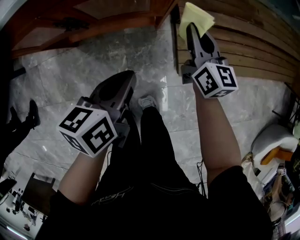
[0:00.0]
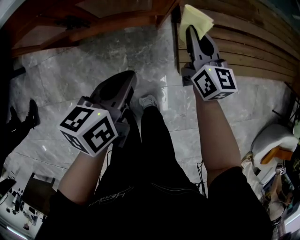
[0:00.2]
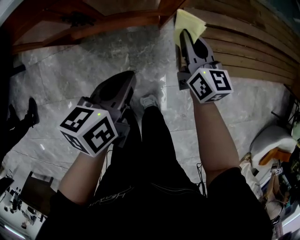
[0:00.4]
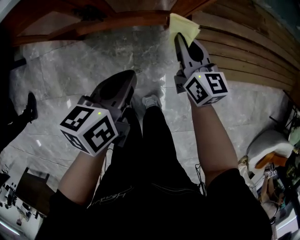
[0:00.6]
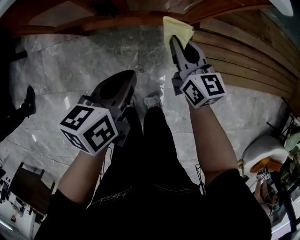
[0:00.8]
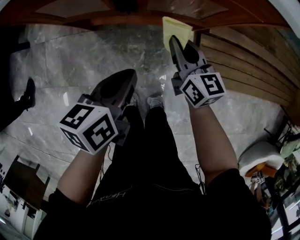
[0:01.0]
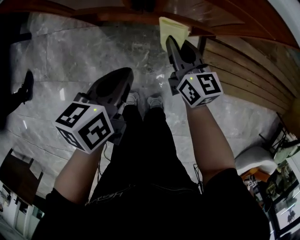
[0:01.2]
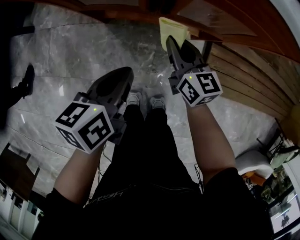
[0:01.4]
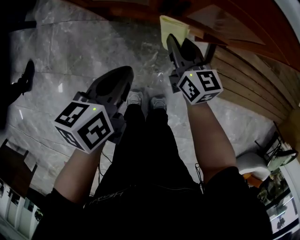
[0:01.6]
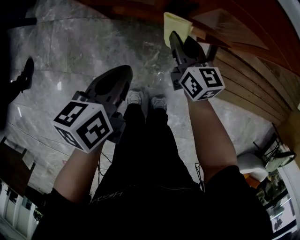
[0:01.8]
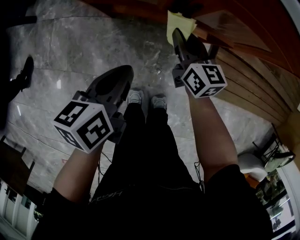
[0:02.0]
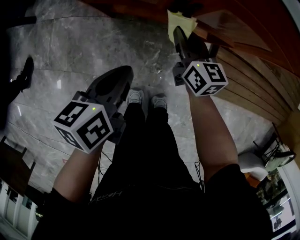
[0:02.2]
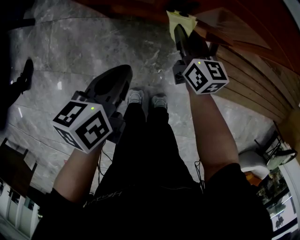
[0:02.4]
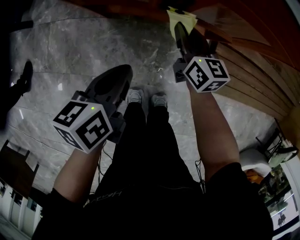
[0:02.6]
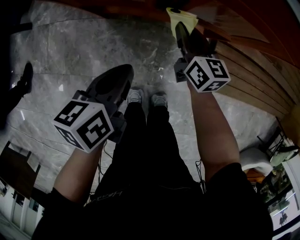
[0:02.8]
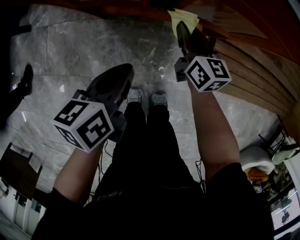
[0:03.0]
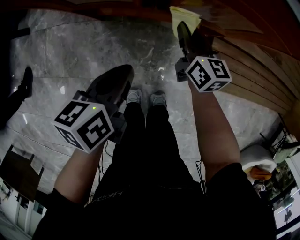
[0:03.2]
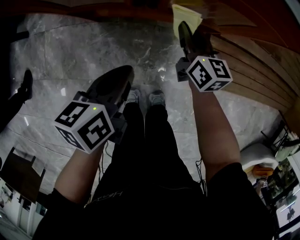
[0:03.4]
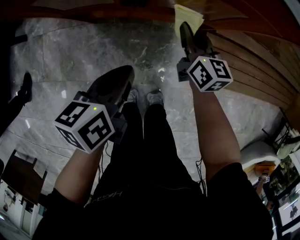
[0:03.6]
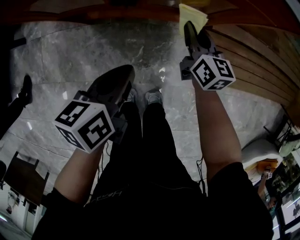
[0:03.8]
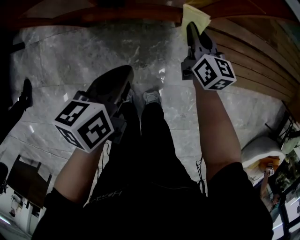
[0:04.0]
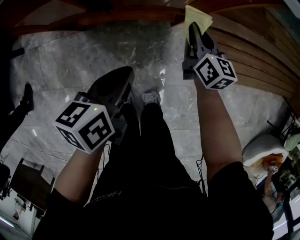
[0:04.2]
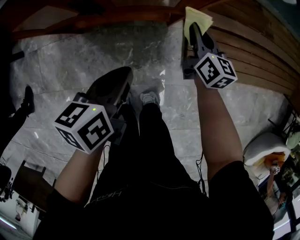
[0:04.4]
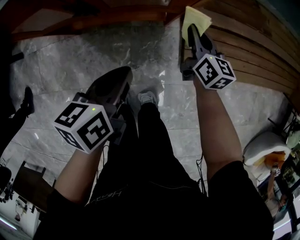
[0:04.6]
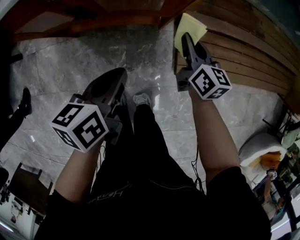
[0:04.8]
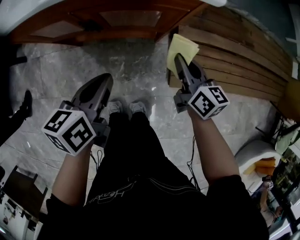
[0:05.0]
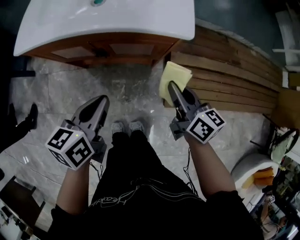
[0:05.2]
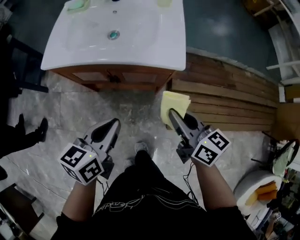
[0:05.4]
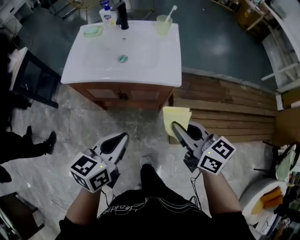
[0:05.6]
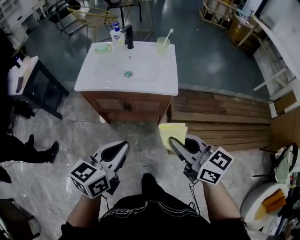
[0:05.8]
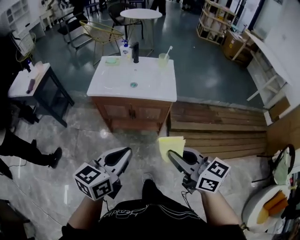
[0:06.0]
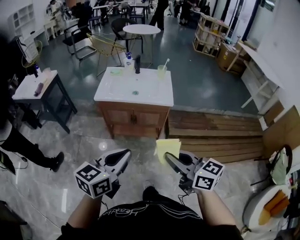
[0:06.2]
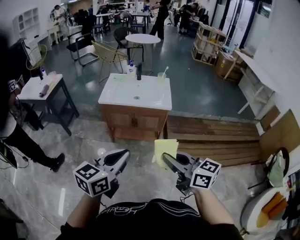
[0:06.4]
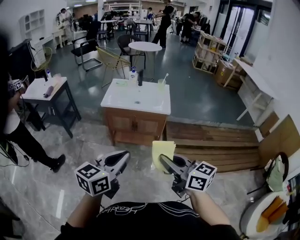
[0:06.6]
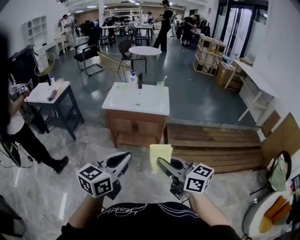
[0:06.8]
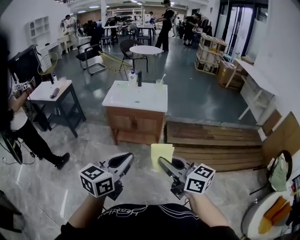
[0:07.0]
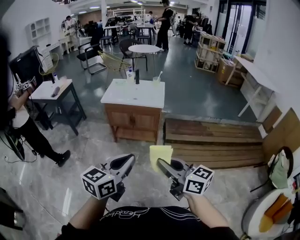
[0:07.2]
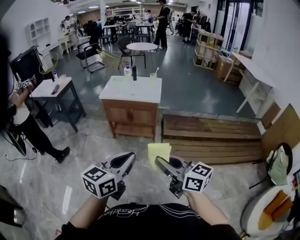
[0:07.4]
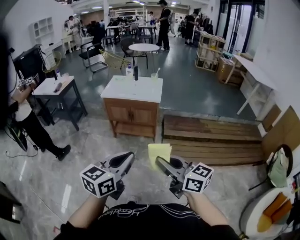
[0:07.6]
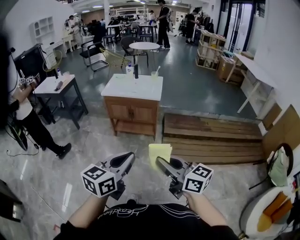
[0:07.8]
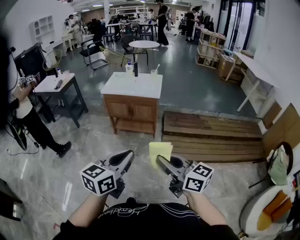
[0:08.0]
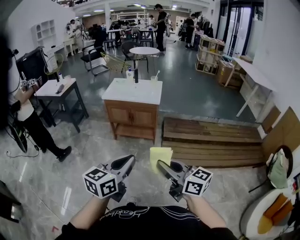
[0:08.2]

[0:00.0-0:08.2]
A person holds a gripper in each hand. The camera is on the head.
0:00.0 to 0:01.6: The grippers both shift to the left by some 25 cm. The right gripper turns by some 30 degrees.
0:01.6 to 0:03.2: The right gripper is displaced to the right by roughly 5 cm.
0:03.2 to 0:05.0: The two grippers go roughly 20 cm to the right and upward.
0:05.0 to 0:06.6: The two grippers go about 60 cm upward and backward. The left gripper swivels approximately 40 degrees; the right gripper rotates some 30 degrees.
0:06.6 to 0:08.2: Both grippers move backward and to the right, about 25 cm.

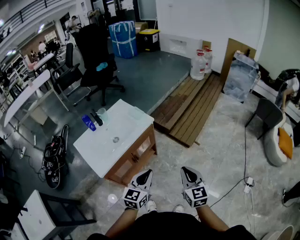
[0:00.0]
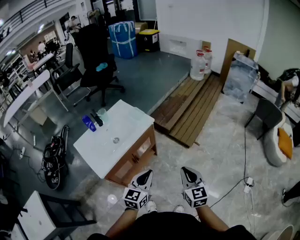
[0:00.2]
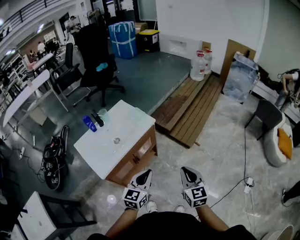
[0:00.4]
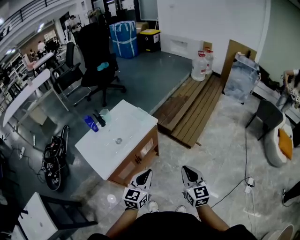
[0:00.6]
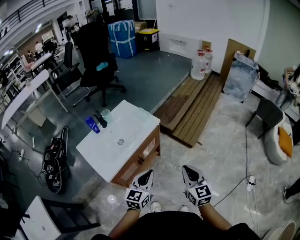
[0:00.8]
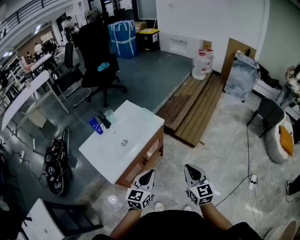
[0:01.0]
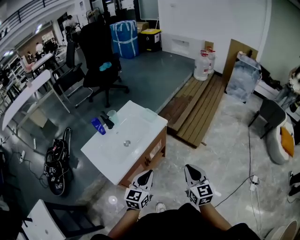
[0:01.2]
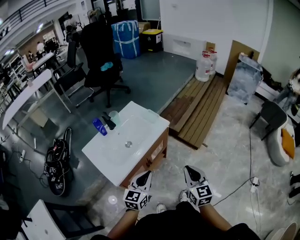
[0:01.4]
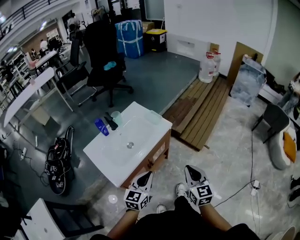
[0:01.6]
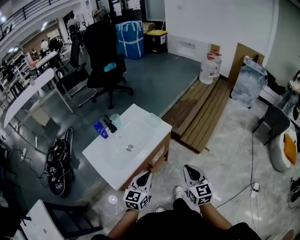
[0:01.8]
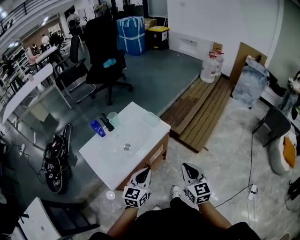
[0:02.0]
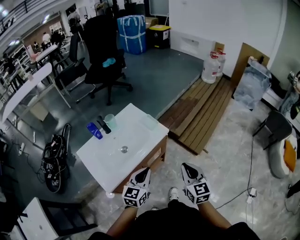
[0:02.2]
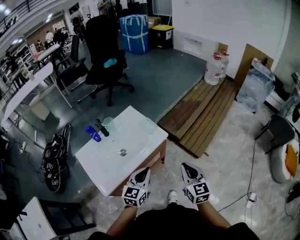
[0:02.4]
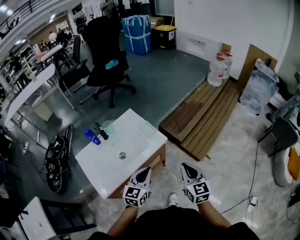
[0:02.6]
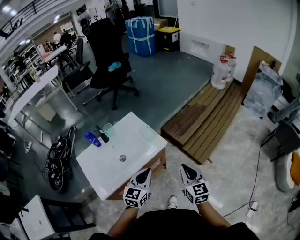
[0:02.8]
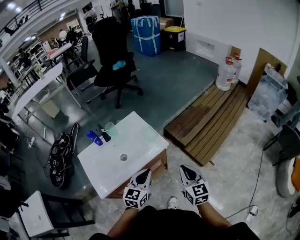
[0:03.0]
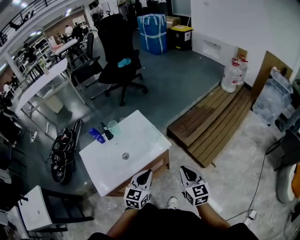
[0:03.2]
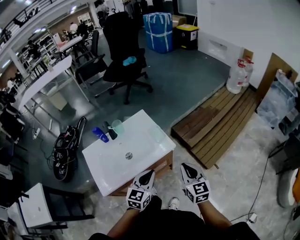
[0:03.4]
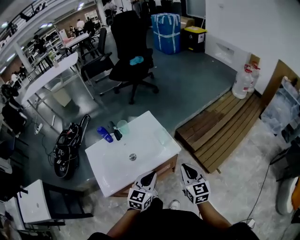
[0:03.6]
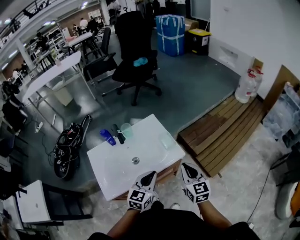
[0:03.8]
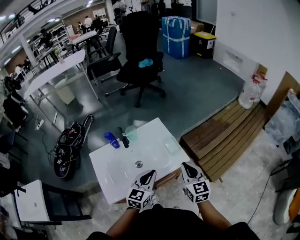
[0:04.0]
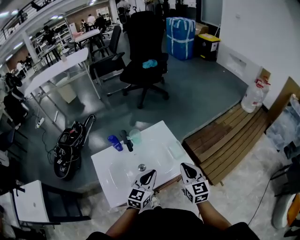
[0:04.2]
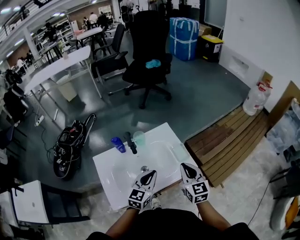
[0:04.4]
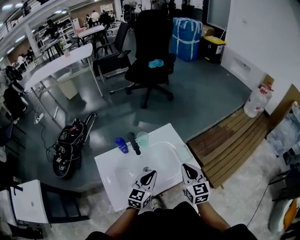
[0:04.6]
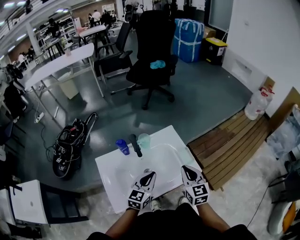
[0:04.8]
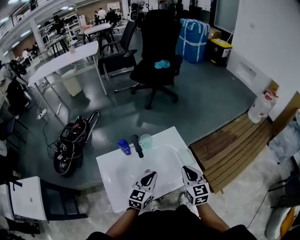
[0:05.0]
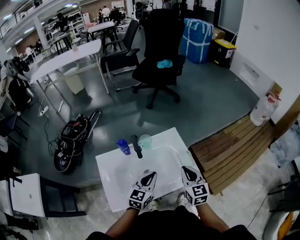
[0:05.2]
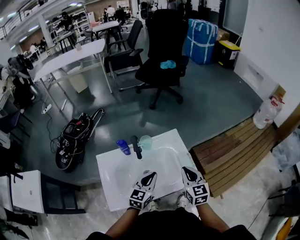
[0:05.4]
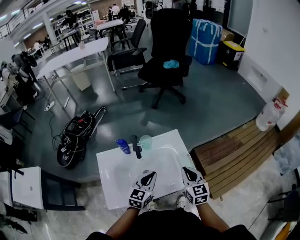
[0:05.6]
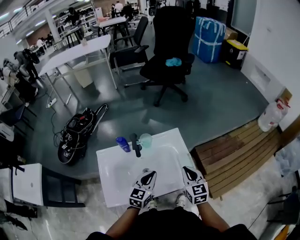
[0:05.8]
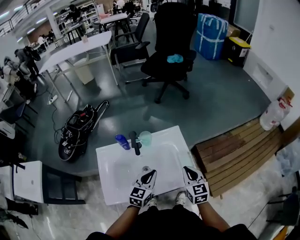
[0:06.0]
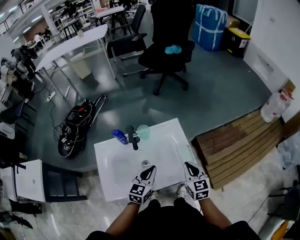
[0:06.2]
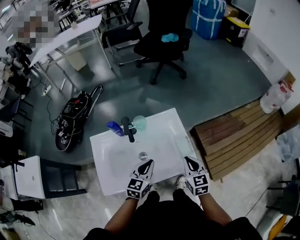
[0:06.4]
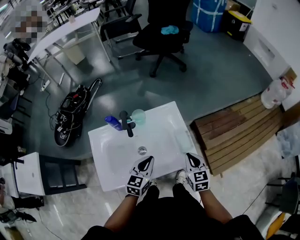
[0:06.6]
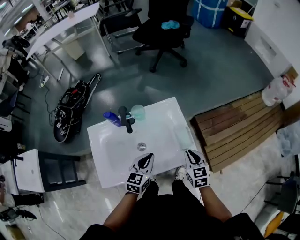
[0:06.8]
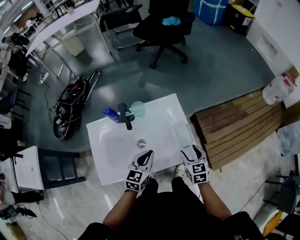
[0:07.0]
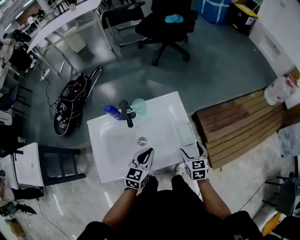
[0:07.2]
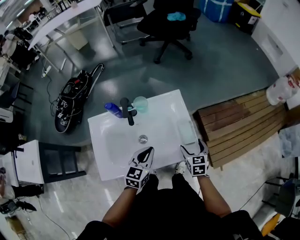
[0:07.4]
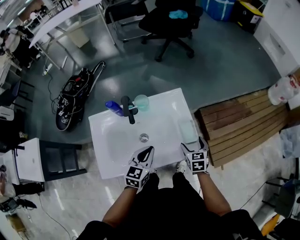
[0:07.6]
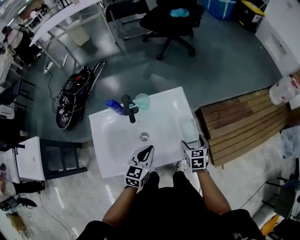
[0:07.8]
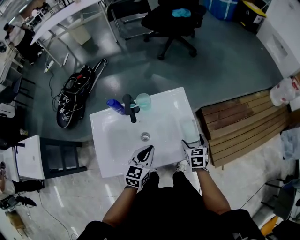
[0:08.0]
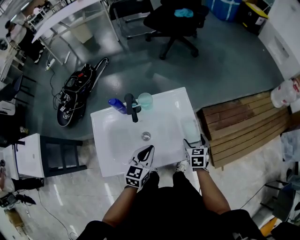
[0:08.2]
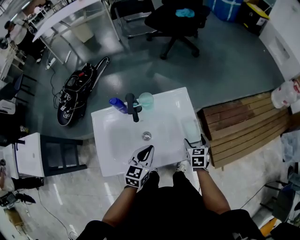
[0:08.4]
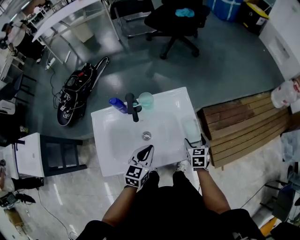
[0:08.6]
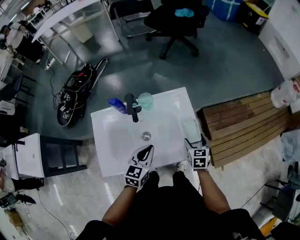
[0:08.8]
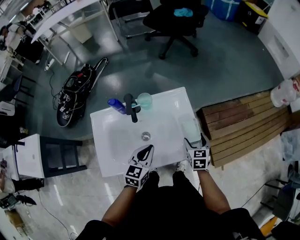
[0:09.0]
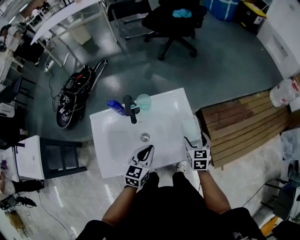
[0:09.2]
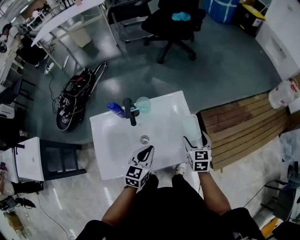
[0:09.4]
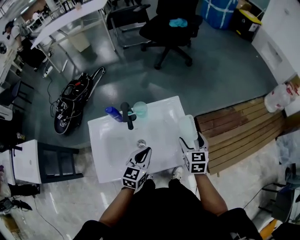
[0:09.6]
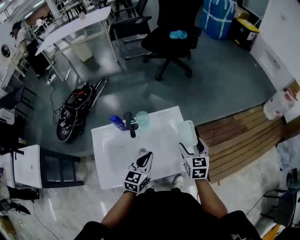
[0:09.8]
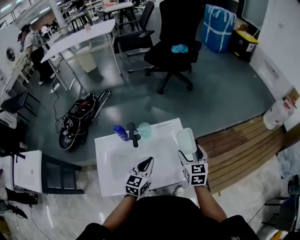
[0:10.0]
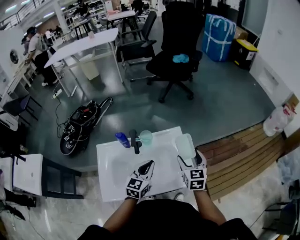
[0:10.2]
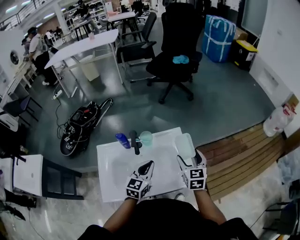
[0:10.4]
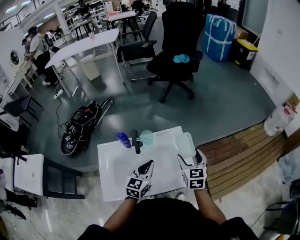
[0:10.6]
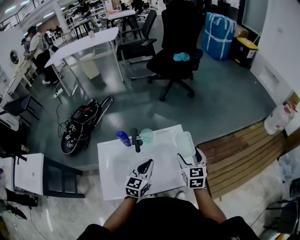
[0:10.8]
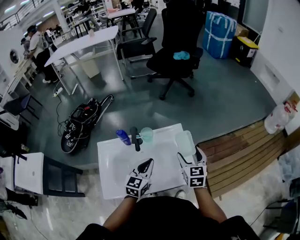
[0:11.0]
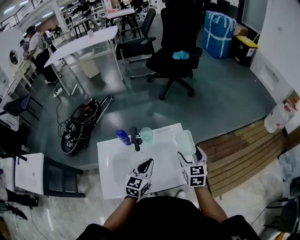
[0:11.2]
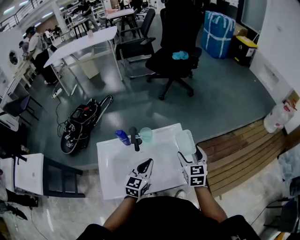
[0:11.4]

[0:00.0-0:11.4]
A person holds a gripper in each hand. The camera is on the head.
0:00.0 to 0:01.4: The grippers both shift to the left by about 10 cm.
0:01.4 to 0:02.8: The right gripper travels forward by approximately 20 cm, while the left gripper moves forward and to the right, some 20 cm.
0:02.8 to 0:04.2: The right gripper heads forward and to the left, covering about 20 cm, while the left gripper is displaced to the left and forward by about 15 cm.
0:04.2 to 0:05.6: The two grippers go approximately 5 cm forward.
0:05.6 to 0:07.2: The left gripper shifts roughly 5 cm downward. Meanwhile the right gripper is displaced downward and to the right by approximately 15 cm, and opens up.
0:07.2 to 0:08.6: The right gripper shifts by roughly 5 cm.
0:08.6 to 0:10.0: The right gripper shifts approximately 15 cm upward. Meanwhile the left gripper goes some 5 cm upward.
0:10.0 to 0:11.4: The grippers move only a little.

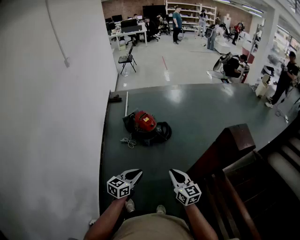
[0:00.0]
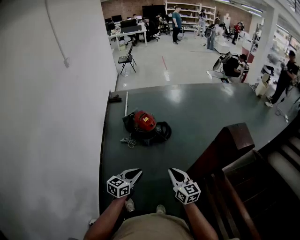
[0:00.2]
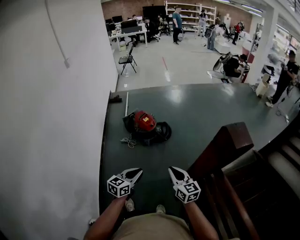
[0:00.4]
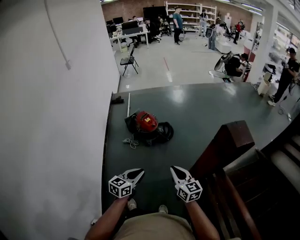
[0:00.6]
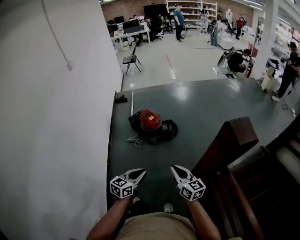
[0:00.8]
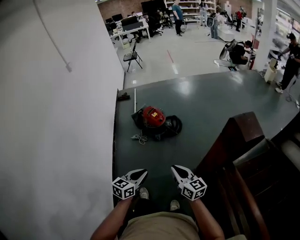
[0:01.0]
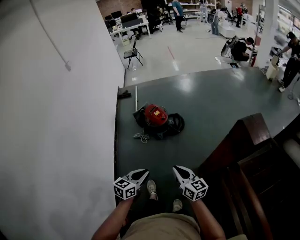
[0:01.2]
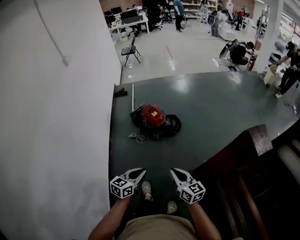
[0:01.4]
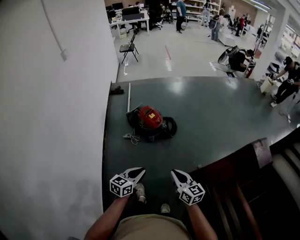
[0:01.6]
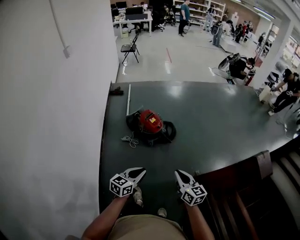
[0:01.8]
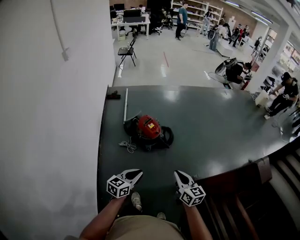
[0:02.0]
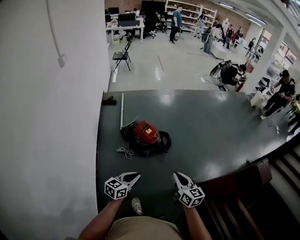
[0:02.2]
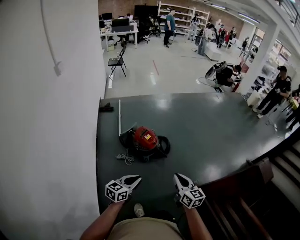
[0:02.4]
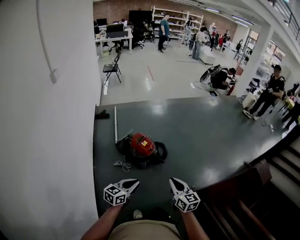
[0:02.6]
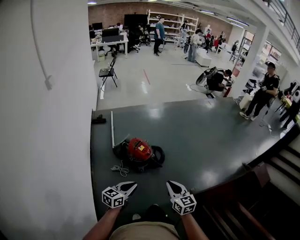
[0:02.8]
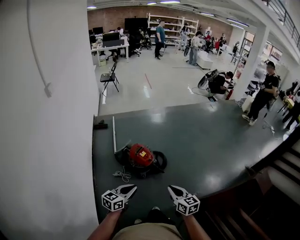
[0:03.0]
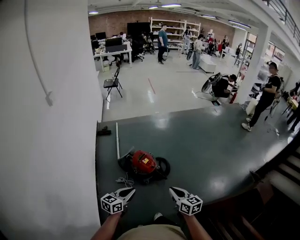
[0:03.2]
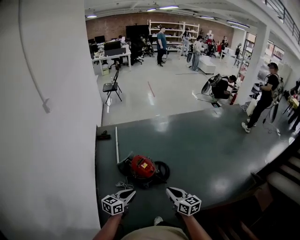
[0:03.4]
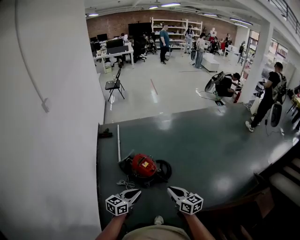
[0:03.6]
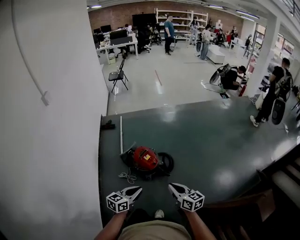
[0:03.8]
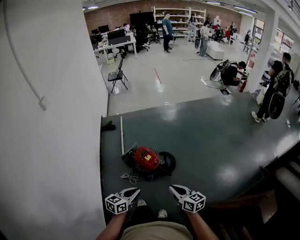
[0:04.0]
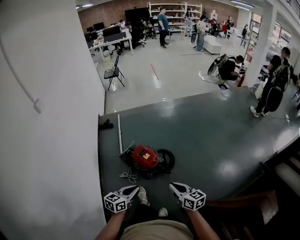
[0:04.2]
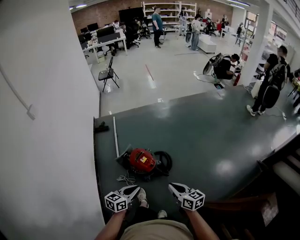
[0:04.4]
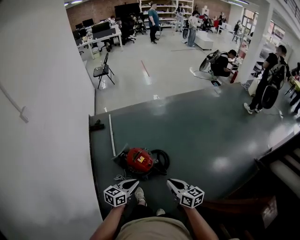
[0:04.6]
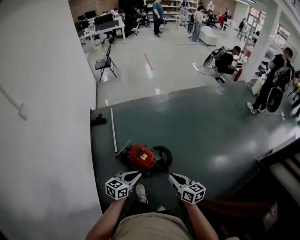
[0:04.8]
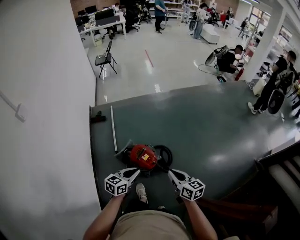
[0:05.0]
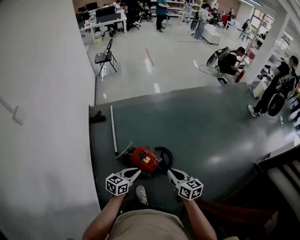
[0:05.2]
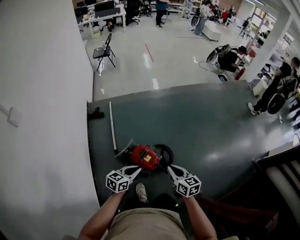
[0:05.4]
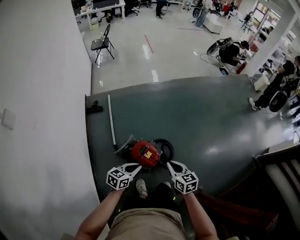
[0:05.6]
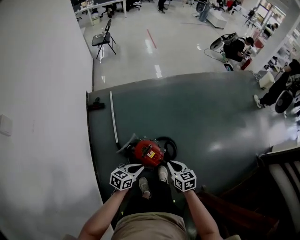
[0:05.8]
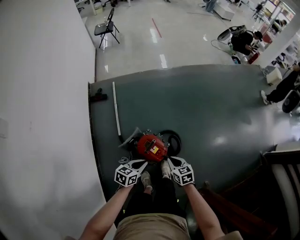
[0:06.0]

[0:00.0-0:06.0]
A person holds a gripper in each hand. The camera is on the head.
0:00.0 to 0:01.6: The left gripper moves forward and to the left, some 10 cm. The right gripper travels to the left and forward by roughly 10 cm.
0:01.6 to 0:03.0: The two grippers go approximately 20 cm forward and to the left.
0:03.0 to 0:04.4: The left gripper travels forward and to the right by some 20 cm. Meanwhile the right gripper shifts about 15 cm forward.
0:04.4 to 0:06.0: The grippers both shift forward, downward and to the left by roughly 40 cm. The right gripper turns by approximately 30 degrees.
